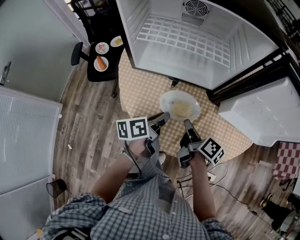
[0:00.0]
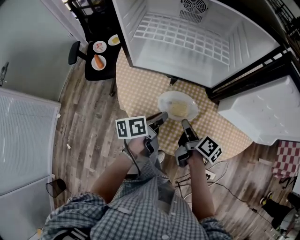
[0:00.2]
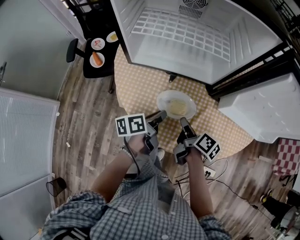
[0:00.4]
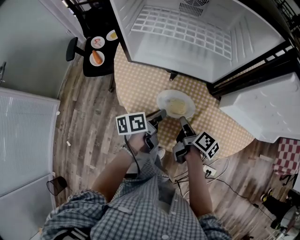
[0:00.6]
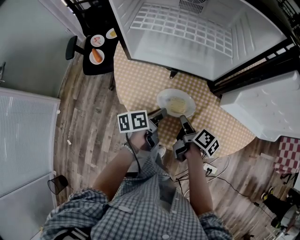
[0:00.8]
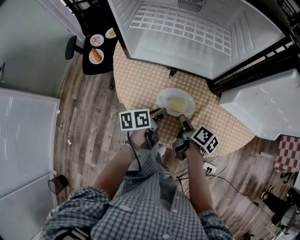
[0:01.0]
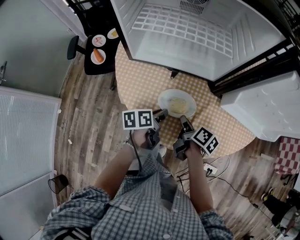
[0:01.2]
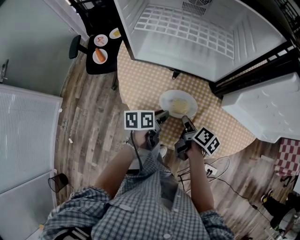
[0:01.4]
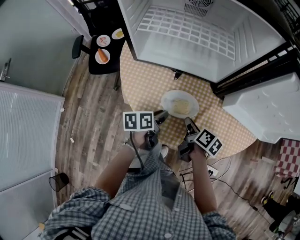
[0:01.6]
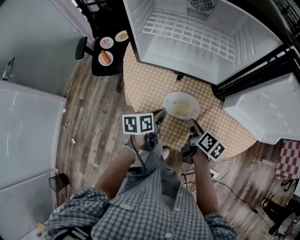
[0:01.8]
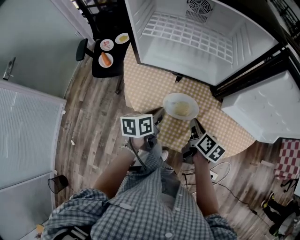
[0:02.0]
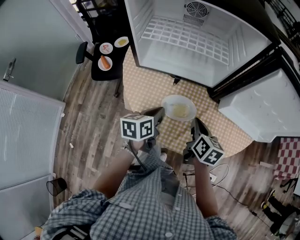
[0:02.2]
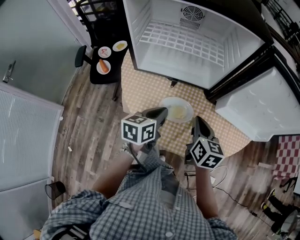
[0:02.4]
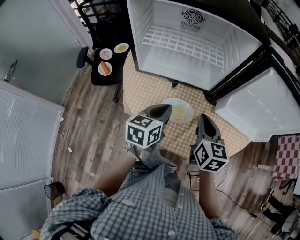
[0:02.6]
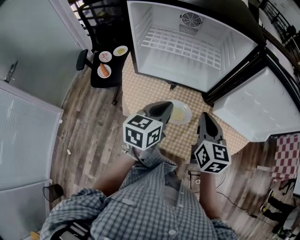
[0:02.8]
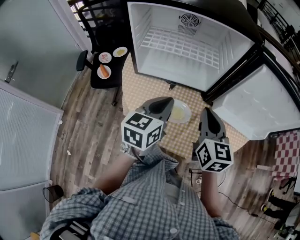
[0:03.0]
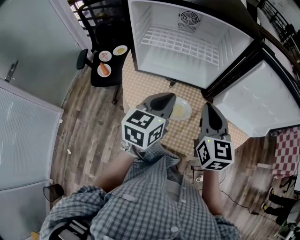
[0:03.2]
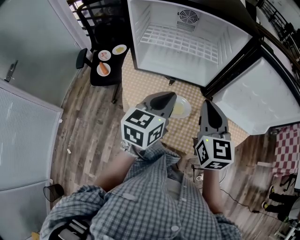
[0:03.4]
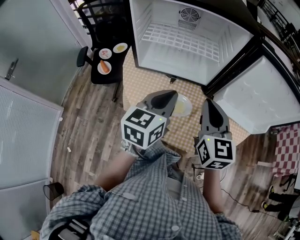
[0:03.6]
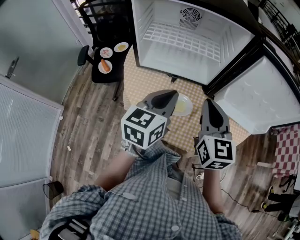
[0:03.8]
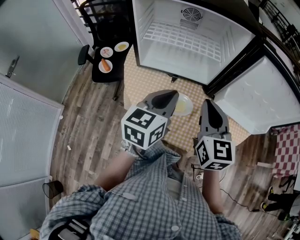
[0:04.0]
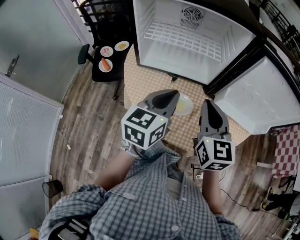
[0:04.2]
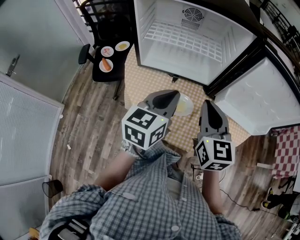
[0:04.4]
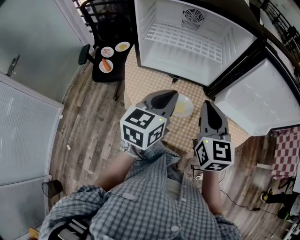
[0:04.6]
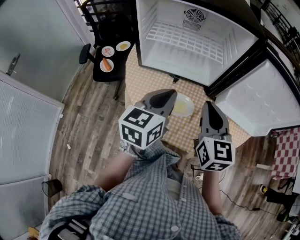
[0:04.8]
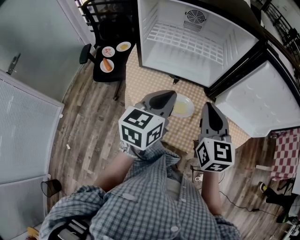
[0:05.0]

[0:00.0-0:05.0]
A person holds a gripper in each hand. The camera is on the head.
0:00.0 to 0:01.6: The grippers both shift downward by roughly 5 cm.
0:01.6 to 0:03.4: The two grippers go about 25 cm upward. The left gripper rolls clockwise, seen from behind, by approximately 40 degrees, while the right gripper rotates around the line of its fingers by approximately 60 degrees, counterclockwise from behind.
0:03.4 to 0:05.0: The grippers move only a little.

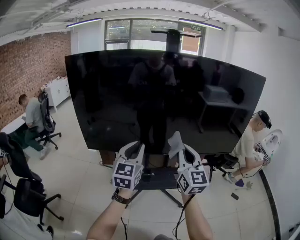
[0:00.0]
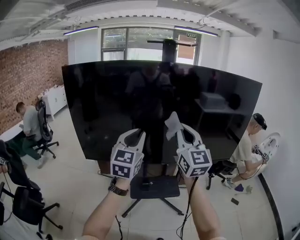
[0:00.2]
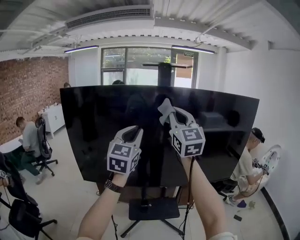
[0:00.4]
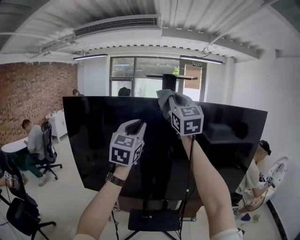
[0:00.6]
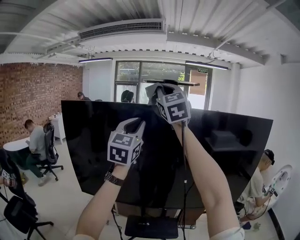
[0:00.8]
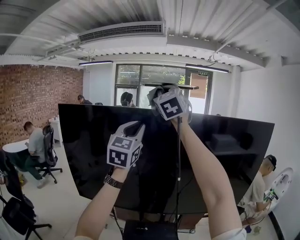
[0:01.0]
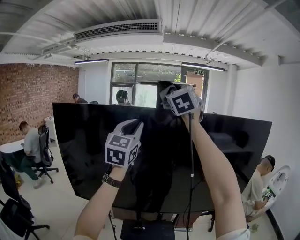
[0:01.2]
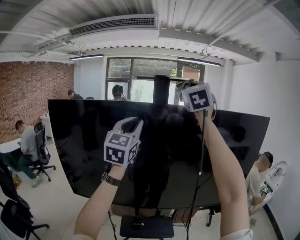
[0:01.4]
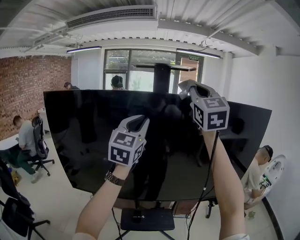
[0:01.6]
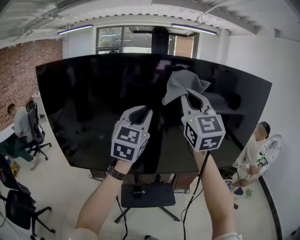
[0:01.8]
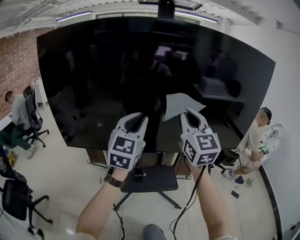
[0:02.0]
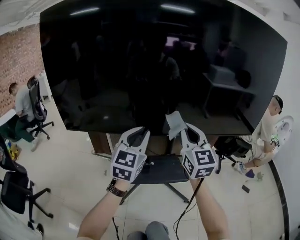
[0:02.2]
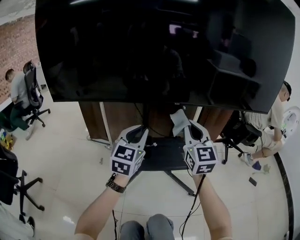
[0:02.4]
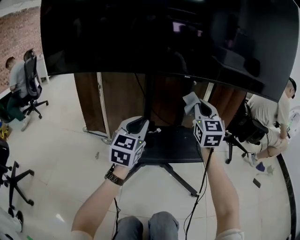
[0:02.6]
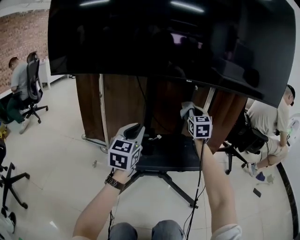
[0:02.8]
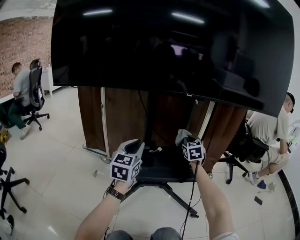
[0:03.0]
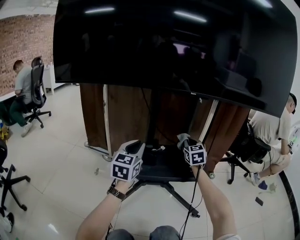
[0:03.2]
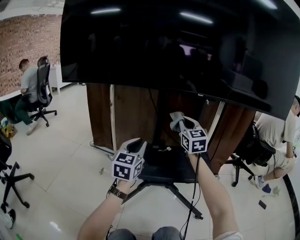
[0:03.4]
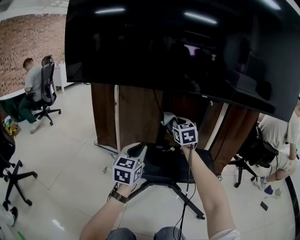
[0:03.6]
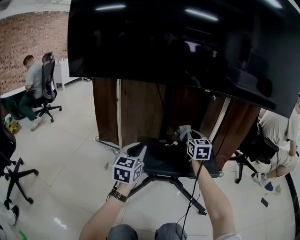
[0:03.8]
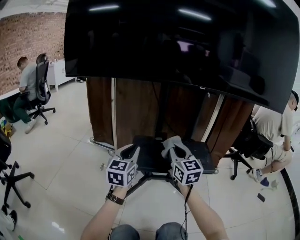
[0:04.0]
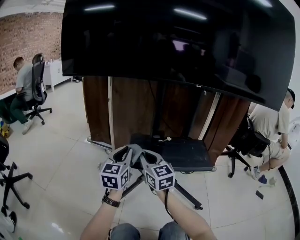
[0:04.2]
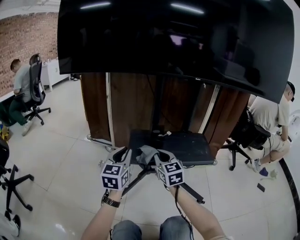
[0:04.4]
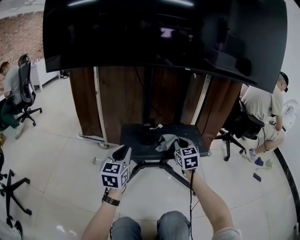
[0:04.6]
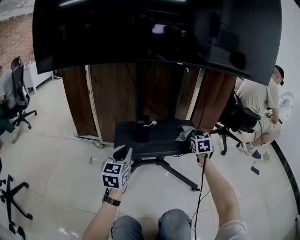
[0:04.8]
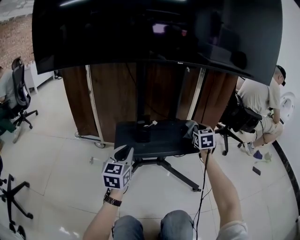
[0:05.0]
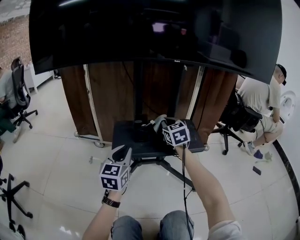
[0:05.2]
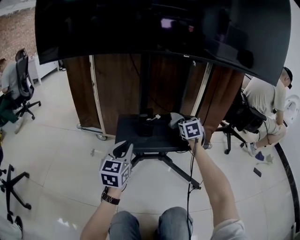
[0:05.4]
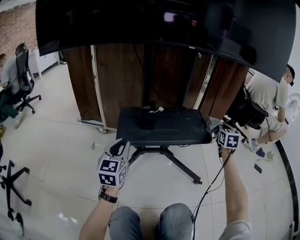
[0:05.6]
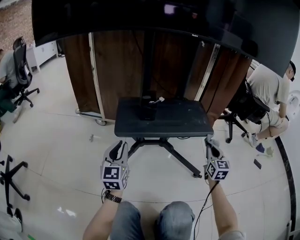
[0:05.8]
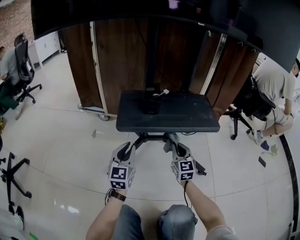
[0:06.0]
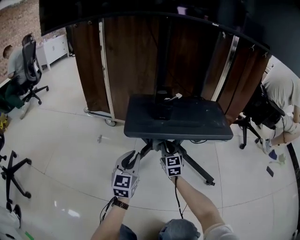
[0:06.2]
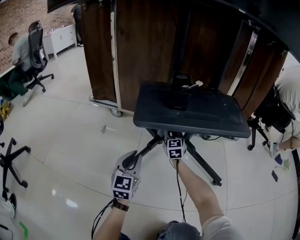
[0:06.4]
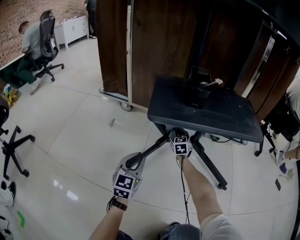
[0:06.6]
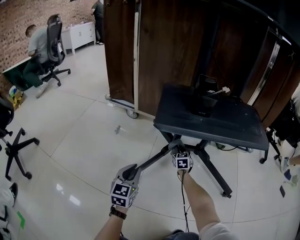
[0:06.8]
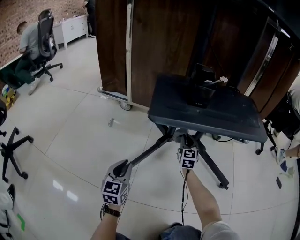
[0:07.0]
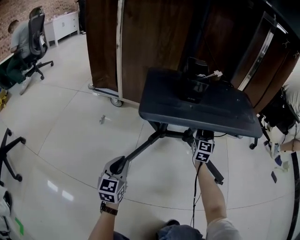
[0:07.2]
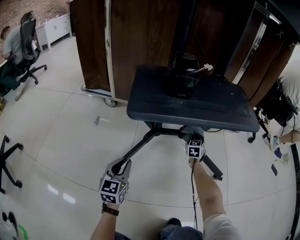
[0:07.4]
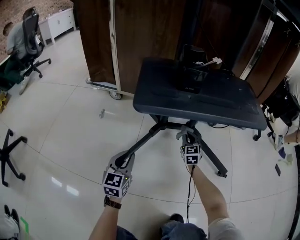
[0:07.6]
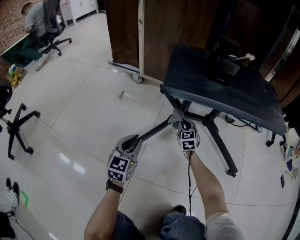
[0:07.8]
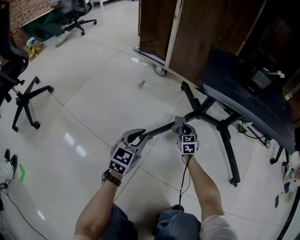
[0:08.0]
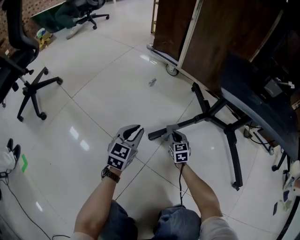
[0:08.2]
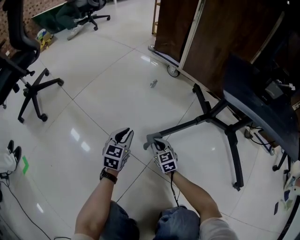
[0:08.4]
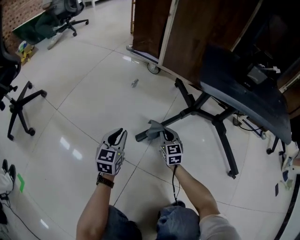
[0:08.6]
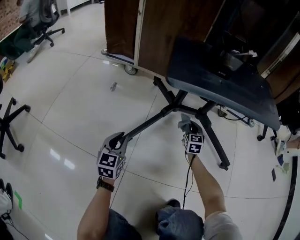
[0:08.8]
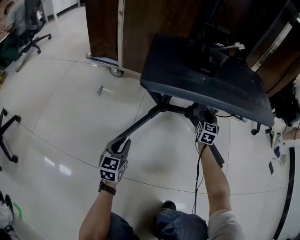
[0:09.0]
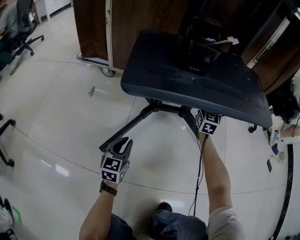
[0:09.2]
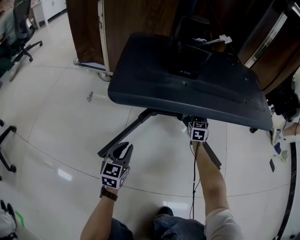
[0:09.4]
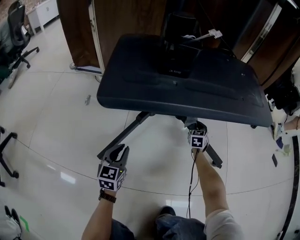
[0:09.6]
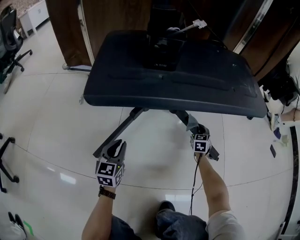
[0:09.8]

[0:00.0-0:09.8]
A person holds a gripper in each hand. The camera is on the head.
0:00.0 to 0:01.4: The grippers both shift upward and forward by about 40 cm. The right gripper rotates some 40 degrees.
0:01.4 to 0:02.8: The grippers both shift downward by about 1 m. The left gripper swivels approximately 20 degrees. Meanwhile the right gripper changes its angle by approximately 20 degrees.
0:02.8 to 0:04.2: The left gripper shifts about 15 cm to the left, downward and backward, while the right gripper goes left and right, roughly 30 cm each way, reversing 2 times, and turns by approximately 40 degrees.
0:04.2 to 0:05.6: The right gripper swings up and down, some 10 cm each way, with 2 reversals, and changes its angle by roughly 50 degrees, while the left gripper shifts approximately 10 cm downward.
0:05.6 to 0:07.0: The right gripper shifts some 50 cm to the left and downward, and swivels some 20 degrees. Meanwhile the left gripper travels downward by about 30 cm.
0:07.0 to 0:08.4: The left gripper shifts by some 20 cm, while the right gripper changes place by some 40 cm, and swivels roughly 50 degrees.
0:08.4 to 0:09.8: The right gripper reaches about 20 cm upward, then returns, and rotates roughly 60 degrees; the left gripper moves roughly 30 cm, and turns by about 20 degrees.

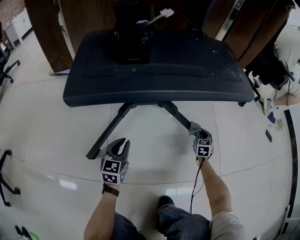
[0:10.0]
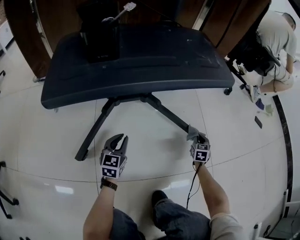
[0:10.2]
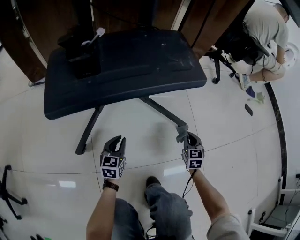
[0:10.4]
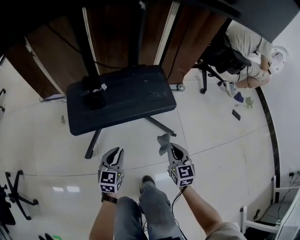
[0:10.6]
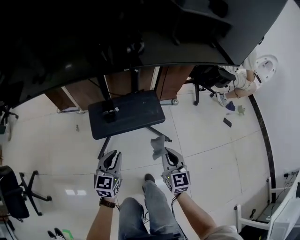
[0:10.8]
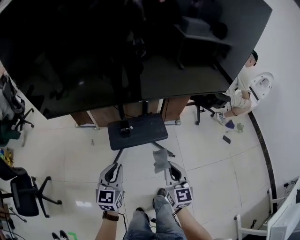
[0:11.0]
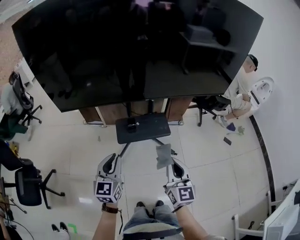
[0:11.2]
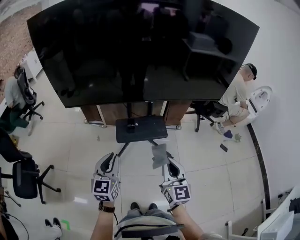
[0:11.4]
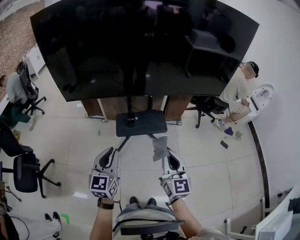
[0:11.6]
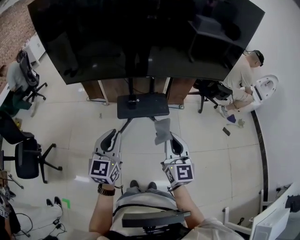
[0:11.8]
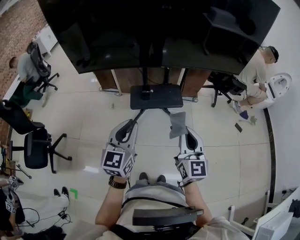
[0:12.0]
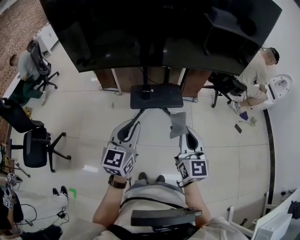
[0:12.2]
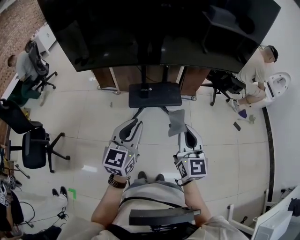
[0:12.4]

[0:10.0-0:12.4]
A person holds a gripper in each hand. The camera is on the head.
0:10.0 to 0:11.2: The right gripper moves upward and backward, some 1 m, and tips its fingers upward by roughly 40 degrees. The left gripper heads upward, covering approximately 1 m.
0:11.2 to 0:12.4: The left gripper heads to the right and backward, covering approximately 10 cm. The right gripper ends up approximately 5 cm from where it was.

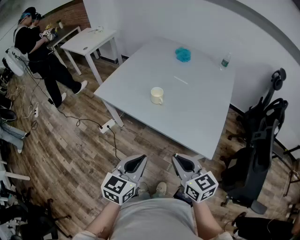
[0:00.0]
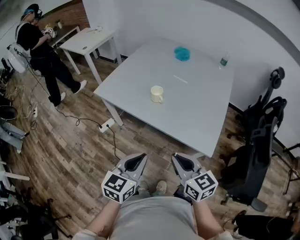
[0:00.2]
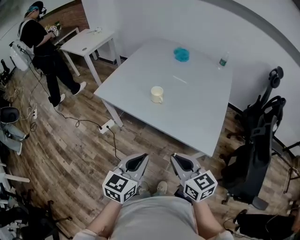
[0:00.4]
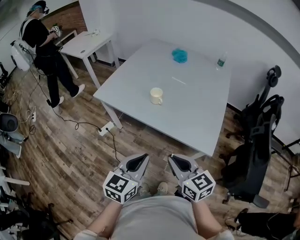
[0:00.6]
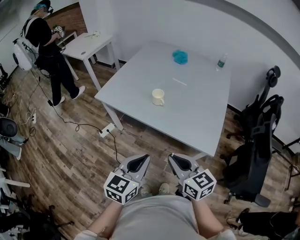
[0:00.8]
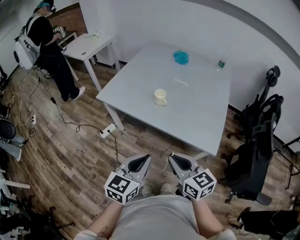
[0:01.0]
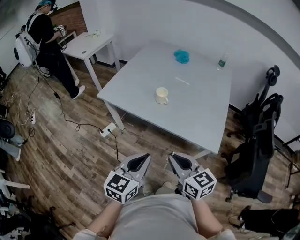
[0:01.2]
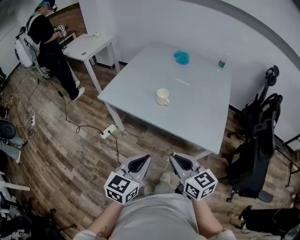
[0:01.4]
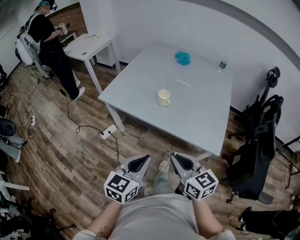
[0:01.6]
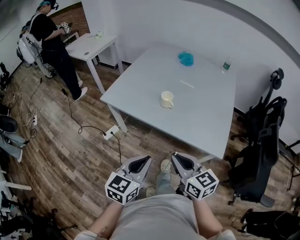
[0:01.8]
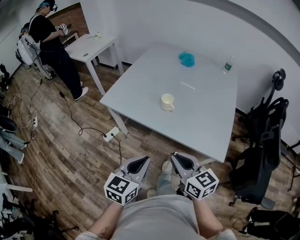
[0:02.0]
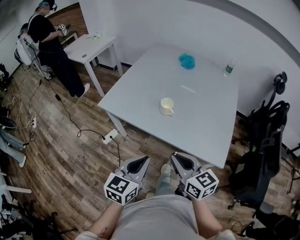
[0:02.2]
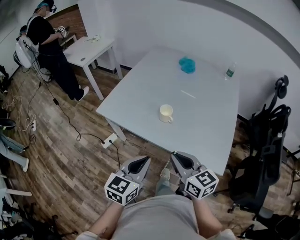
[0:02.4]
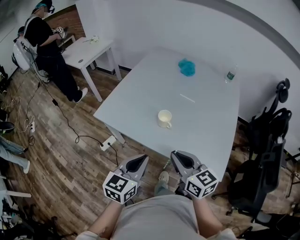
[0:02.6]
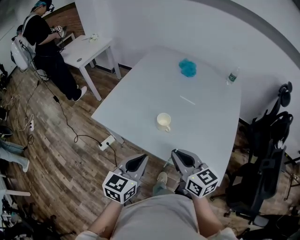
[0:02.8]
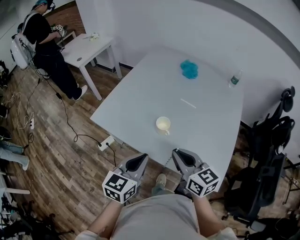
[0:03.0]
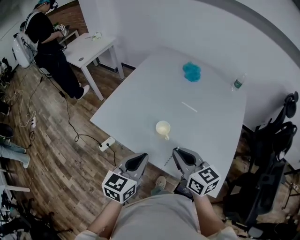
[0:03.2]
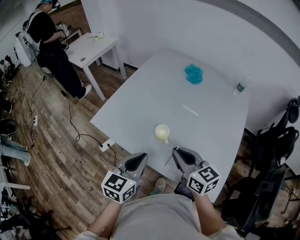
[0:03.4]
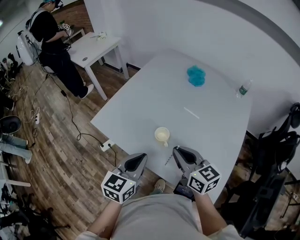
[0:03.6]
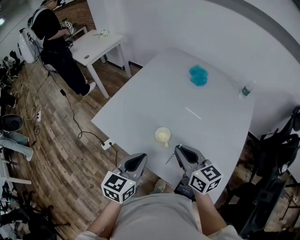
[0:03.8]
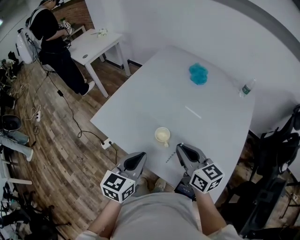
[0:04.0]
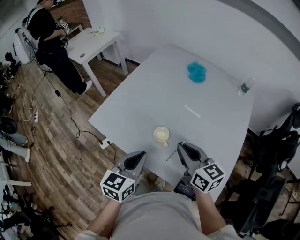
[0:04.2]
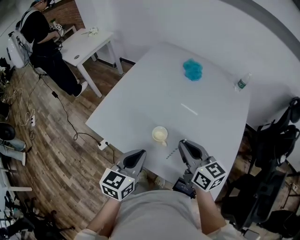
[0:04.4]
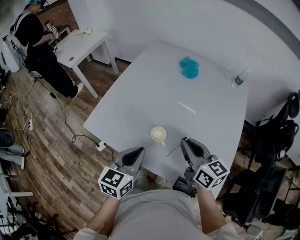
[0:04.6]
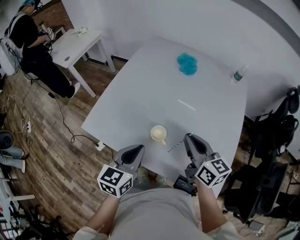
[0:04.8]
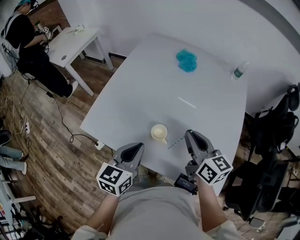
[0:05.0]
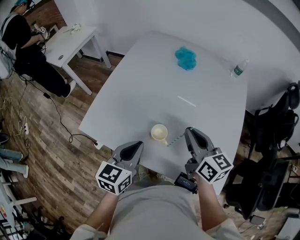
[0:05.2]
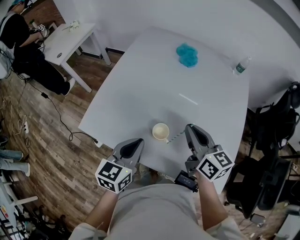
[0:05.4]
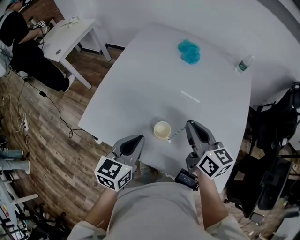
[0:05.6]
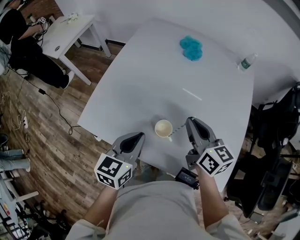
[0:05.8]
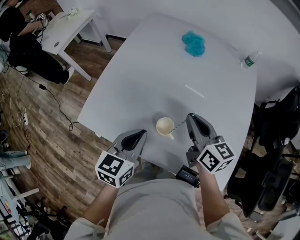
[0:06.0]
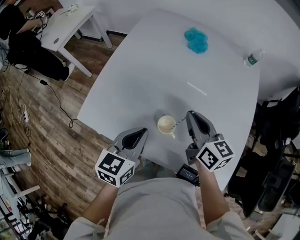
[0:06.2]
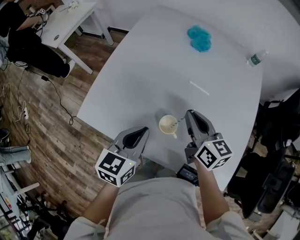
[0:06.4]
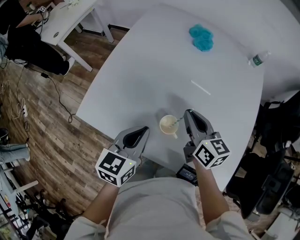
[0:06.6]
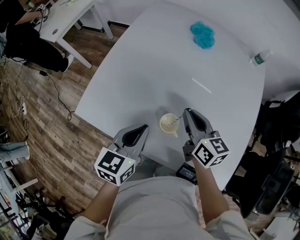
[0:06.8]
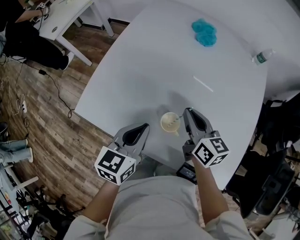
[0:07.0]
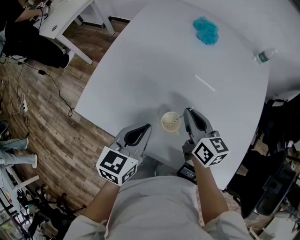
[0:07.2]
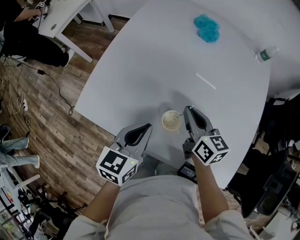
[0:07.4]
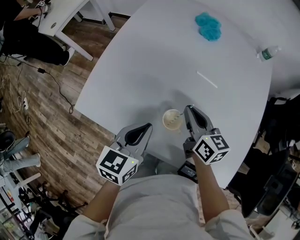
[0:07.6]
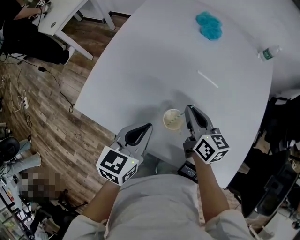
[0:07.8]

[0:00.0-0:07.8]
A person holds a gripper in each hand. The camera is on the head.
0:00.0 to 0:01.6: Both grippers move to the left, roughly 5 cm.
0:01.6 to 0:03.2: Both grippers move forward, approximately 25 cm.
0:03.2 to 0:04.6: The left gripper goes roughly 10 cm forward, while the right gripper heads forward and to the right, covering approximately 10 cm.
0:04.6 to 0:06.2: The grippers both shift forward by roughly 10 cm.
0:06.2 to 0:07.8: The right gripper moves downward, some 10 cm.
